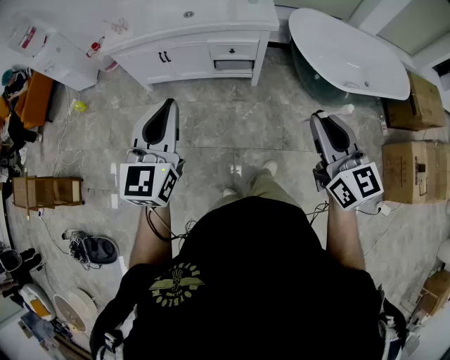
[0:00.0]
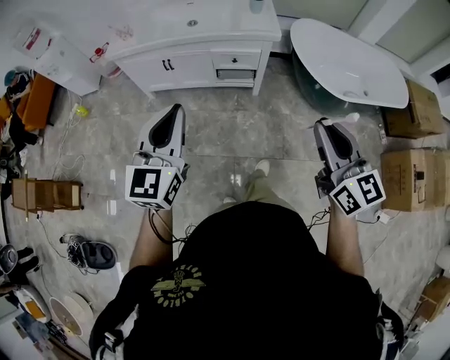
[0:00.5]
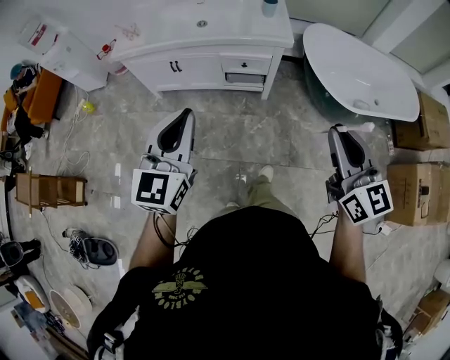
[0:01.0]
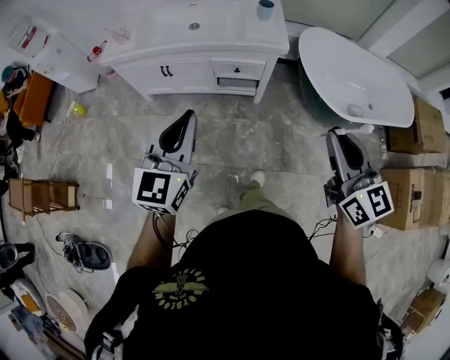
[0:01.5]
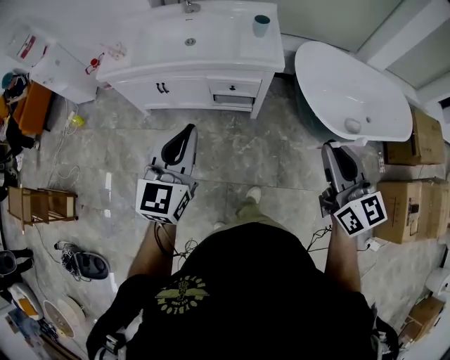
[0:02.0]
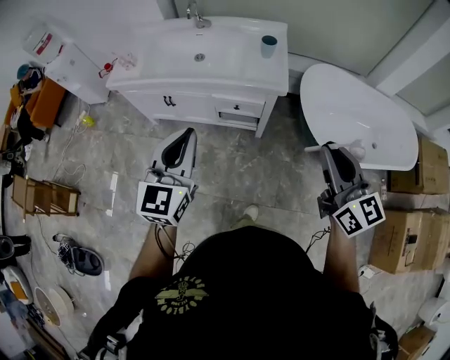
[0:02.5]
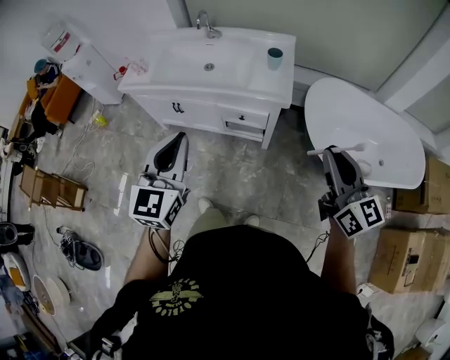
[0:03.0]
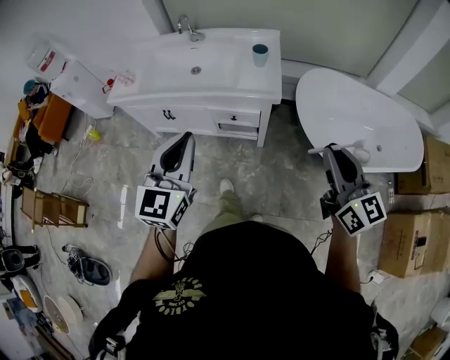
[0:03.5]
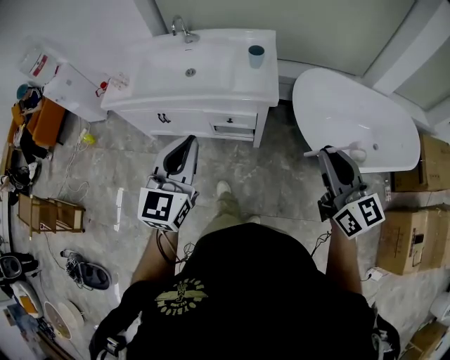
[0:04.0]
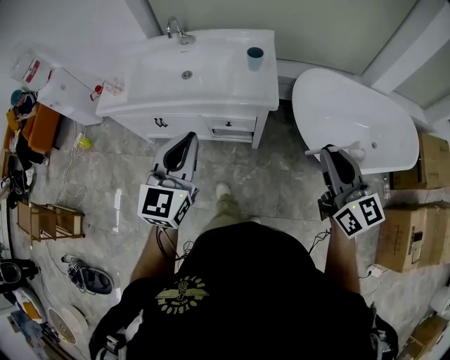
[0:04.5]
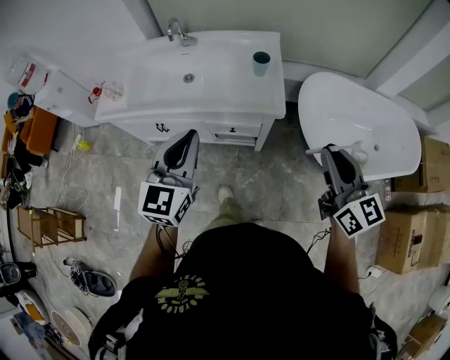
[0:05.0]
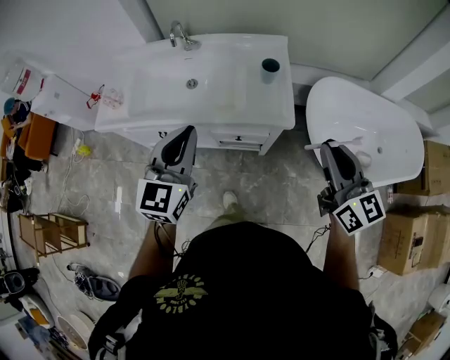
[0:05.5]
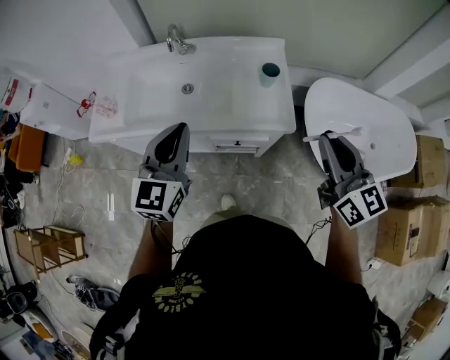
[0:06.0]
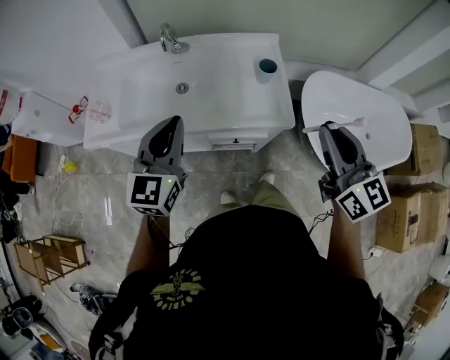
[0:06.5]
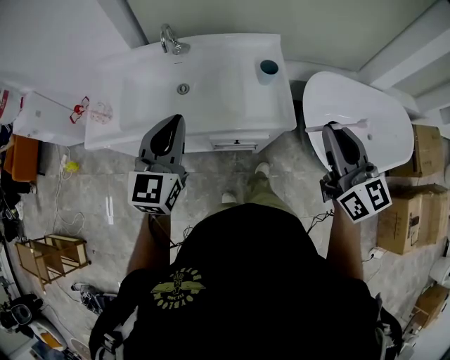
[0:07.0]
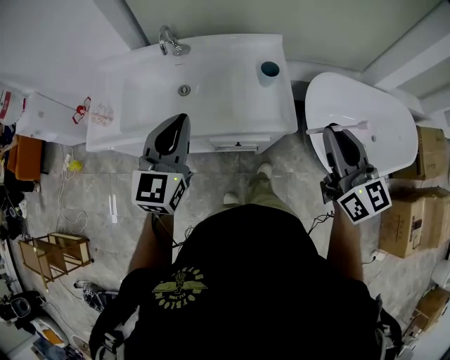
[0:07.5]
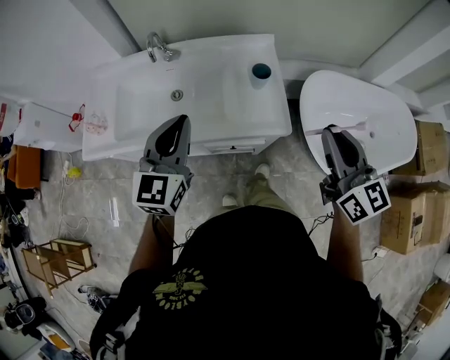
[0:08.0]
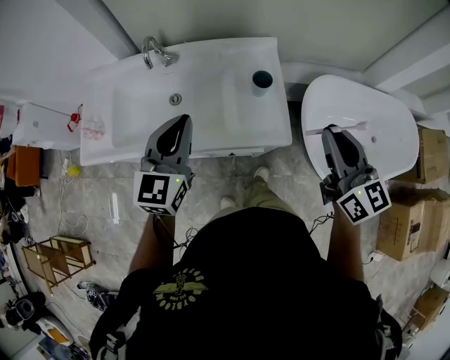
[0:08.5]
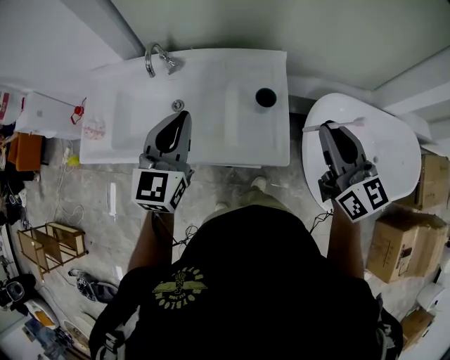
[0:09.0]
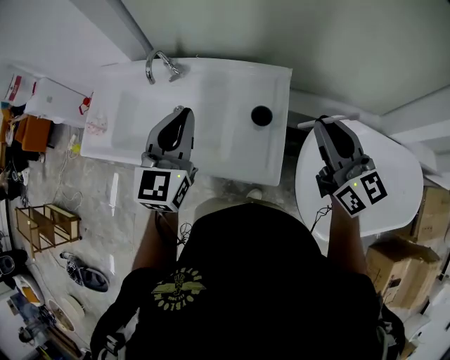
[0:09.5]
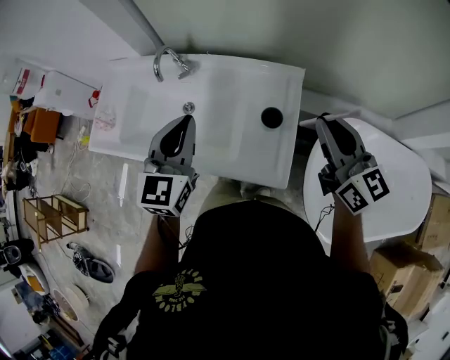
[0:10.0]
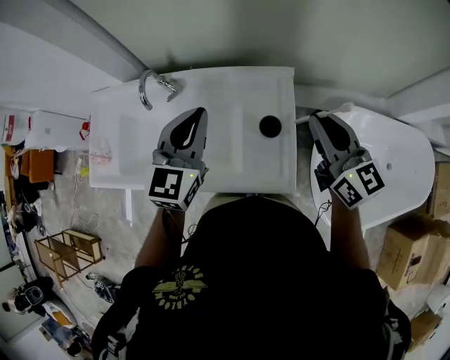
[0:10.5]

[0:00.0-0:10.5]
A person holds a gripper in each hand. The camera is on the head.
0:00.0 to 0:02.0: The right gripper heads forward, covering roughly 15 cm. Meanwhile the left gripper moves forward and to the right, about 15 cm.
0:02.0 to 0:04.0: The right gripper travels forward and to the right by approximately 15 cm. Meanwhile the left gripper moves to the right and forward, about 15 cm.
0:04.0 to 0:06.5: Both grippers move forward and to the left, roughly 30 cm.
0:06.5 to 0:08.5: Both grippers move forward and to the right, roughly 10 cm.
0:08.5 to 0:10.5: The right gripper is displaced forward by roughly 20 cm. The left gripper goes approximately 20 cm forward and to the right.

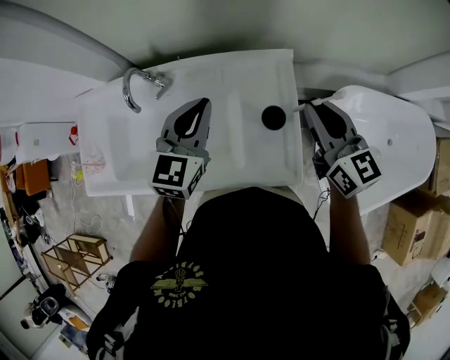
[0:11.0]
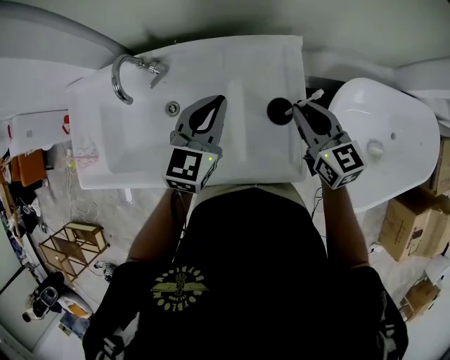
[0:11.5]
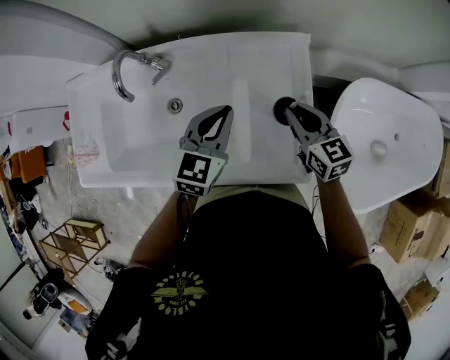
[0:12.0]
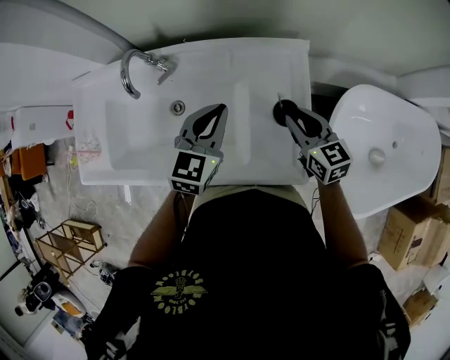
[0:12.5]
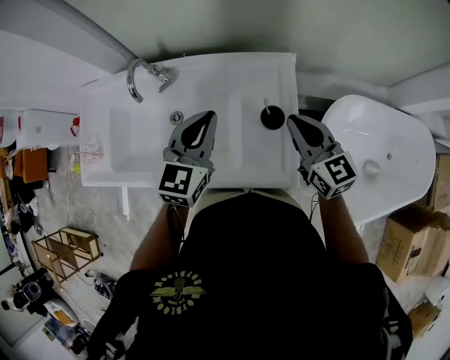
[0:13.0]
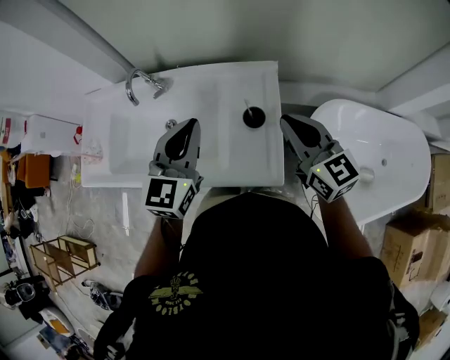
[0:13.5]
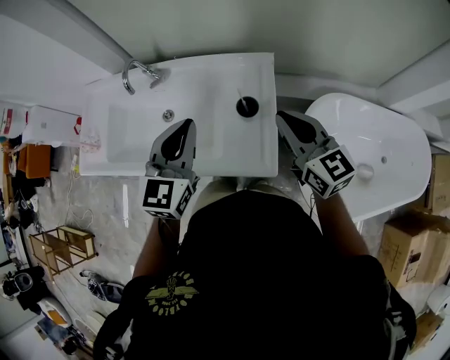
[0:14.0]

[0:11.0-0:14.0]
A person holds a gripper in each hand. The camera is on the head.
0:11.0 to 0:12.5: The right gripper goes about 15 cm downward. Meanwhile the left gripper goes roughly 10 cm downward.
0:12.5 to 0:14.0: The two grippers go about 20 cm upward and backward.

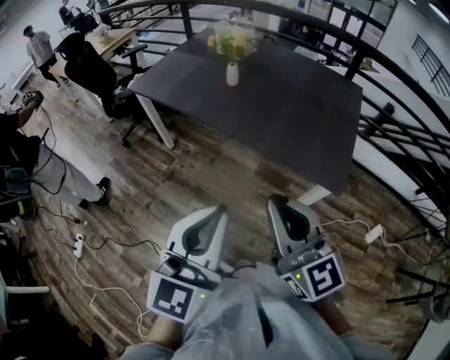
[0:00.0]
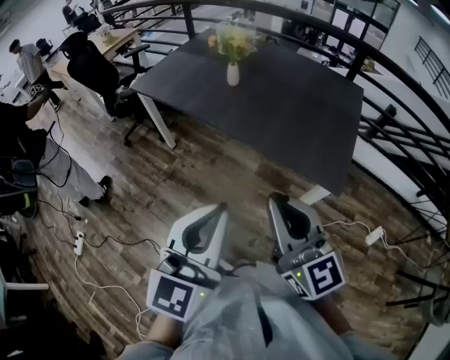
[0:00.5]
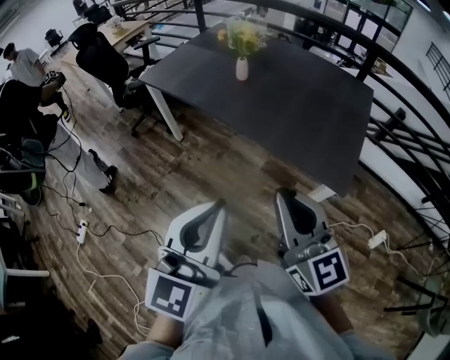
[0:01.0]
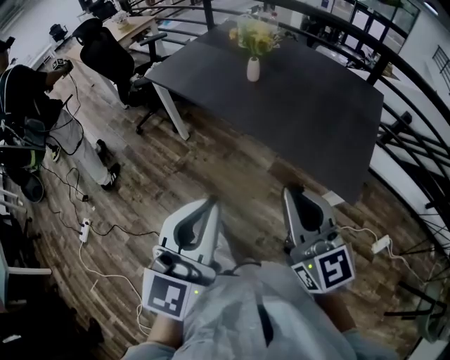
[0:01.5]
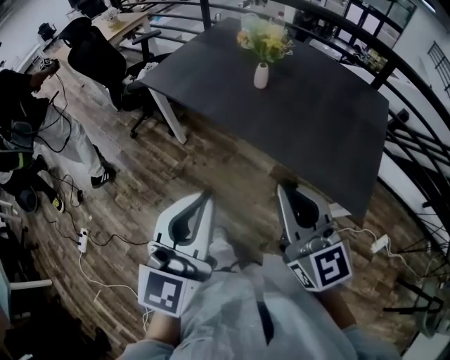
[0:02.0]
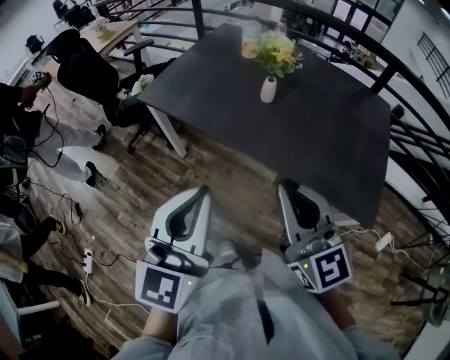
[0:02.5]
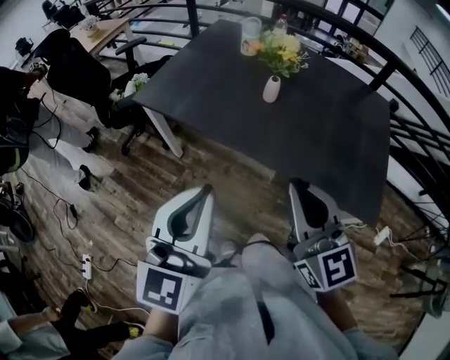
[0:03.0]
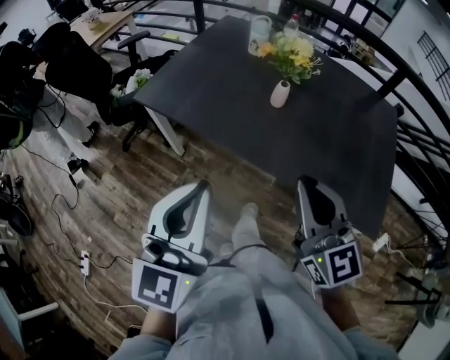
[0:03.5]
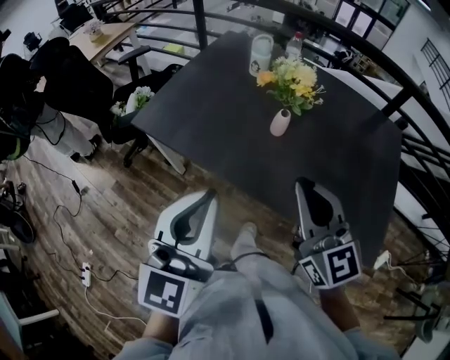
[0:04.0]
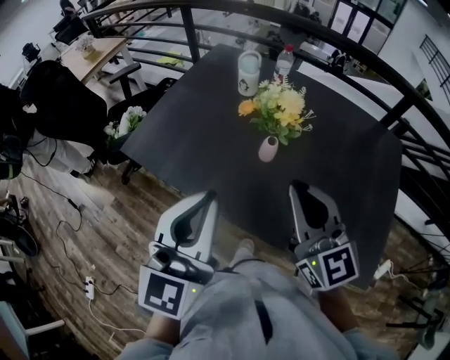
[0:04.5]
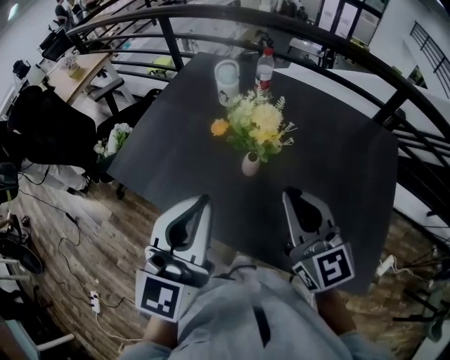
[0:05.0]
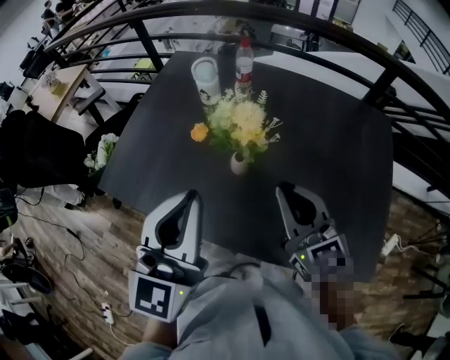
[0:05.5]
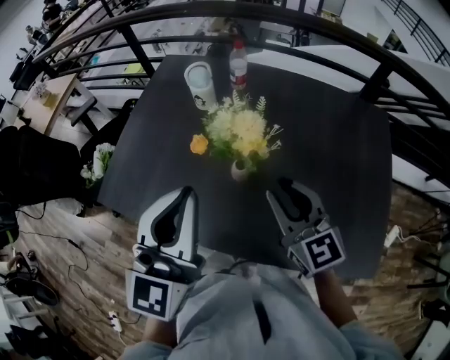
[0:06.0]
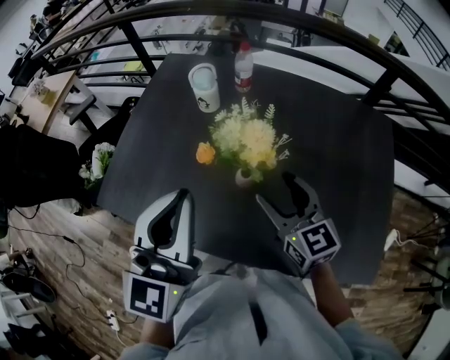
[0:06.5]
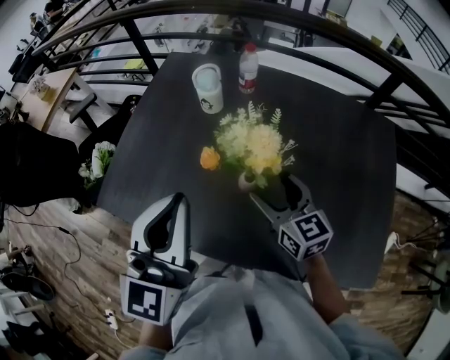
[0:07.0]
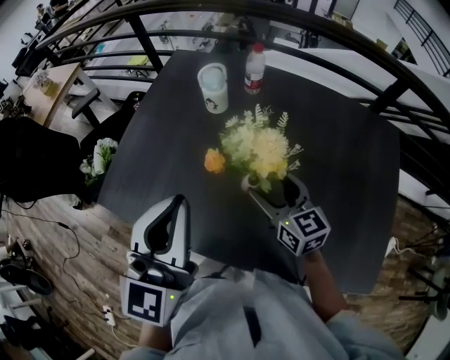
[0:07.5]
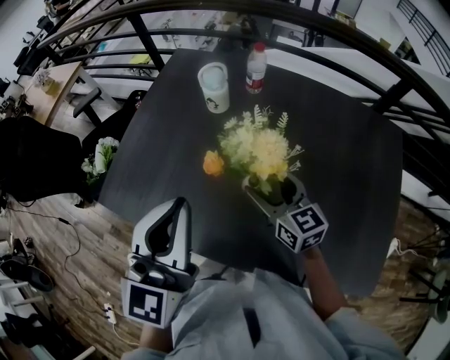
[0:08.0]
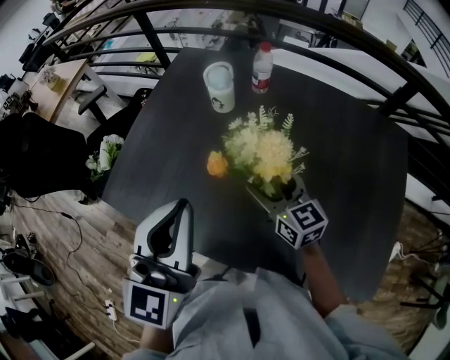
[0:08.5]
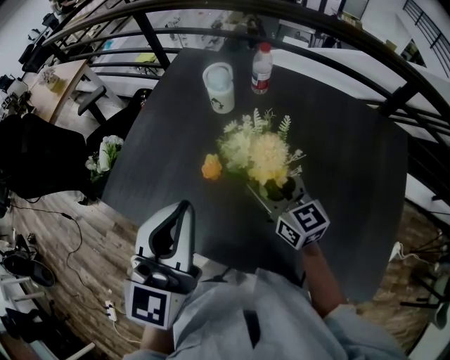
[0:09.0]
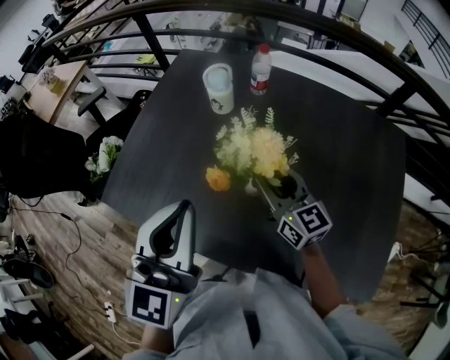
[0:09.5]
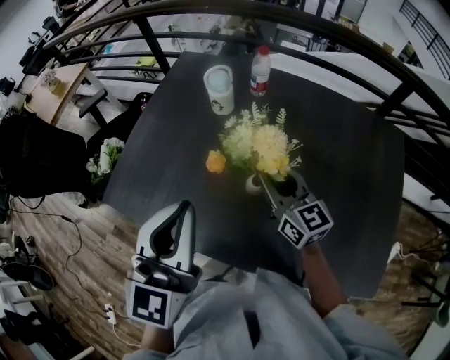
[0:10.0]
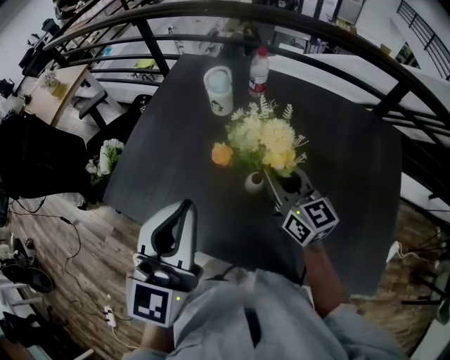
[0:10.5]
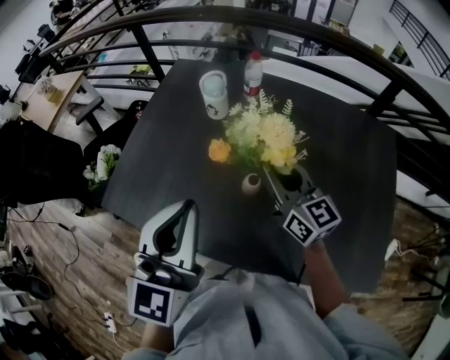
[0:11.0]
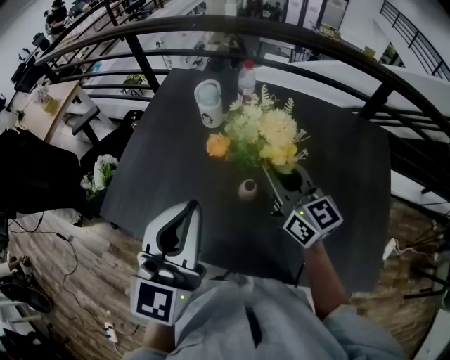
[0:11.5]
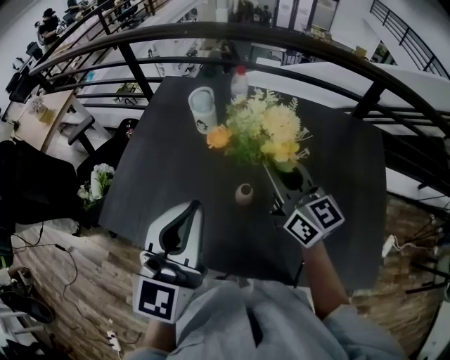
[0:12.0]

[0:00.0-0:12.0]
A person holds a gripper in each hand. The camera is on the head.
0:00.0 to 0:02.0: Both grippers travel together forward and to the left, roughly 15 cm.
0:02.0 to 0:04.0: The two grippers go some 25 cm forward.
0:04.0 to 0:06.0: The right gripper heads forward and to the right, covering some 20 cm, while the left gripper moves forward, roughly 20 cm.
0:06.0 to 0:08.0: The left gripper moves about 5 cm, while the right gripper travels forward and downward by some 15 cm, and opens.
0:08.0 to 0:10.0: The right gripper closes.
0:10.0 to 0:12.0: The right gripper is displaced upward by about 10 cm.

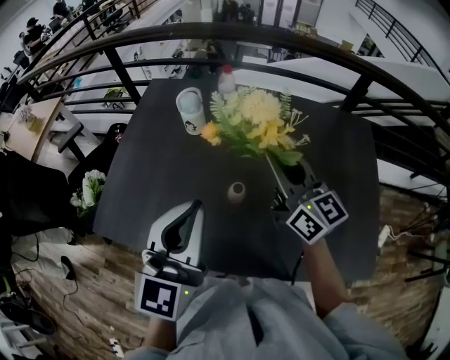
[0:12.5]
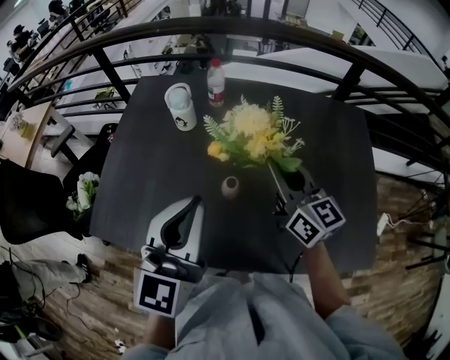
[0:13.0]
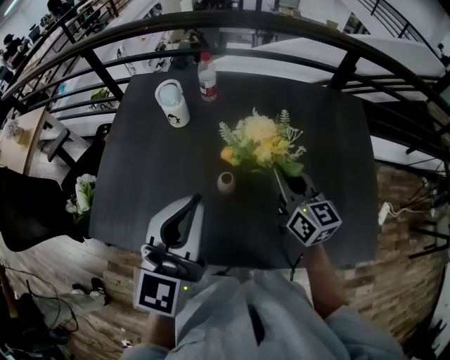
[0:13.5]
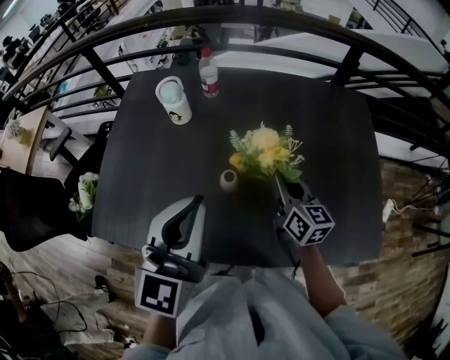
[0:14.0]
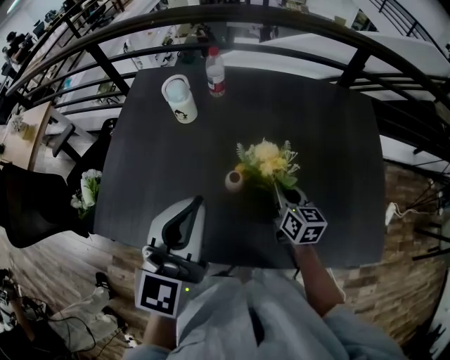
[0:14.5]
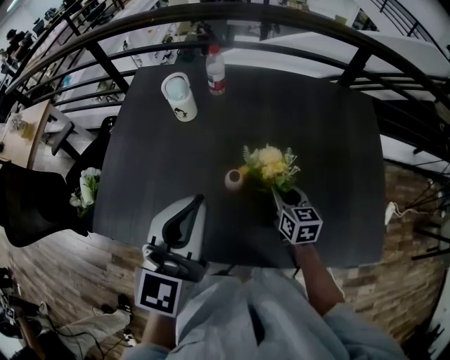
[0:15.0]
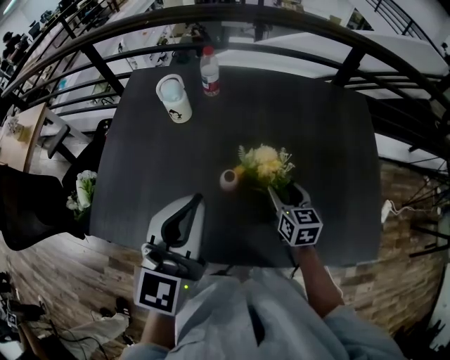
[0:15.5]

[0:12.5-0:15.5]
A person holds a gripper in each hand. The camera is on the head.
0:12.5 to 0:14.0: The right gripper moves downward and to the right, about 20 cm, and rotates approximately 30 degrees.
0:14.0 to 0:15.5: The right gripper is displaced downward by approximately 5 cm, and opens up.
